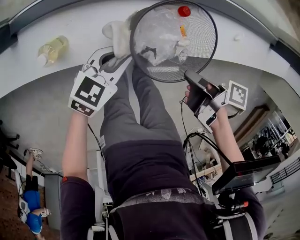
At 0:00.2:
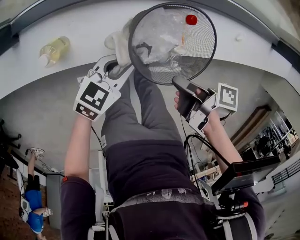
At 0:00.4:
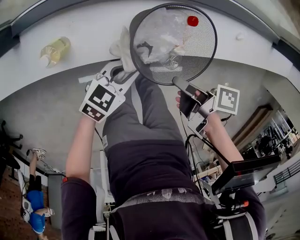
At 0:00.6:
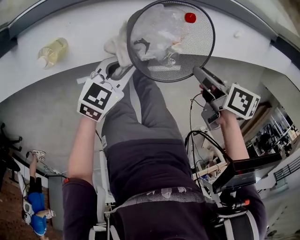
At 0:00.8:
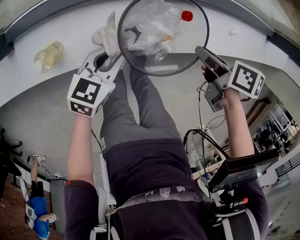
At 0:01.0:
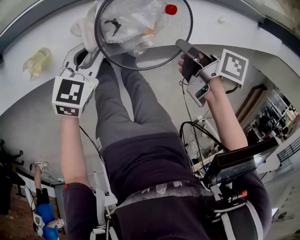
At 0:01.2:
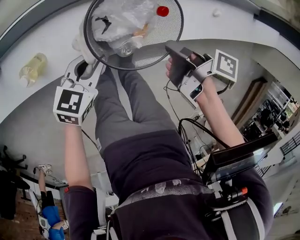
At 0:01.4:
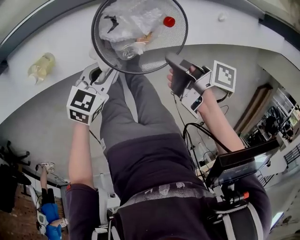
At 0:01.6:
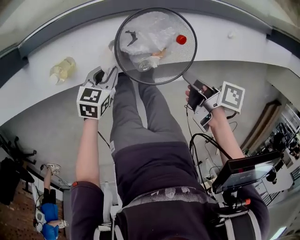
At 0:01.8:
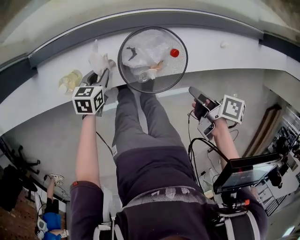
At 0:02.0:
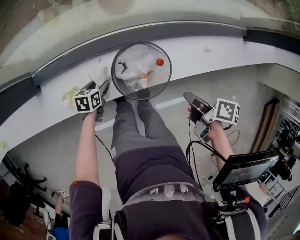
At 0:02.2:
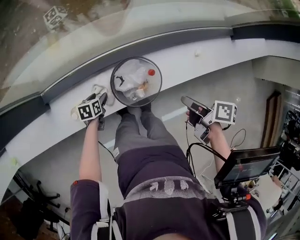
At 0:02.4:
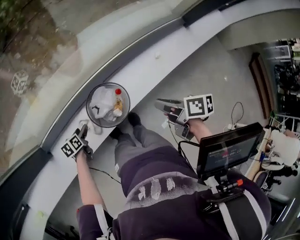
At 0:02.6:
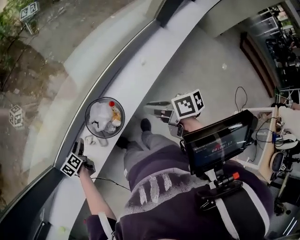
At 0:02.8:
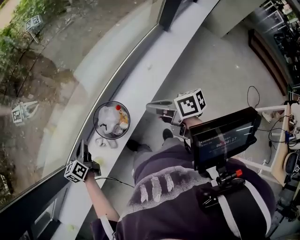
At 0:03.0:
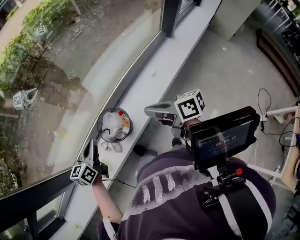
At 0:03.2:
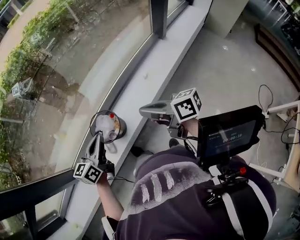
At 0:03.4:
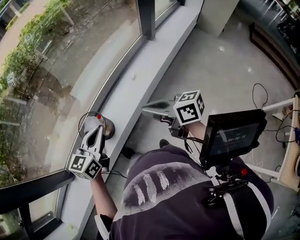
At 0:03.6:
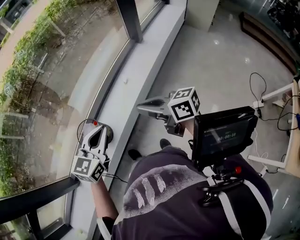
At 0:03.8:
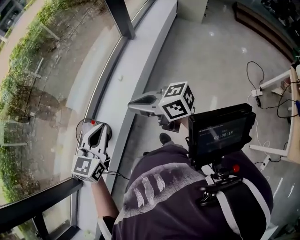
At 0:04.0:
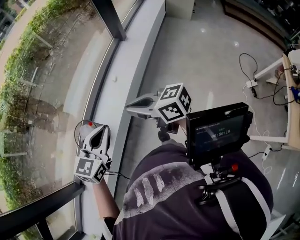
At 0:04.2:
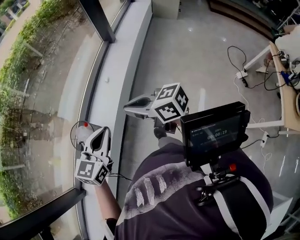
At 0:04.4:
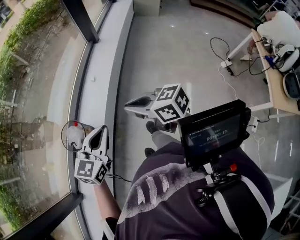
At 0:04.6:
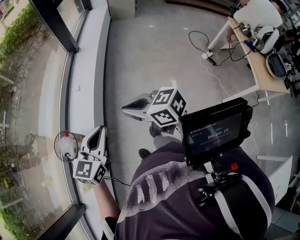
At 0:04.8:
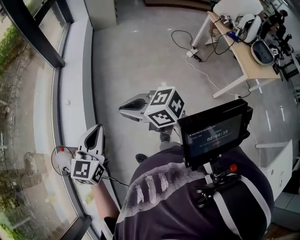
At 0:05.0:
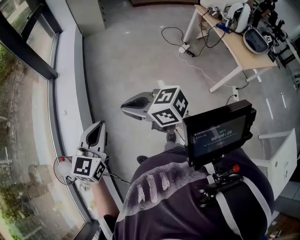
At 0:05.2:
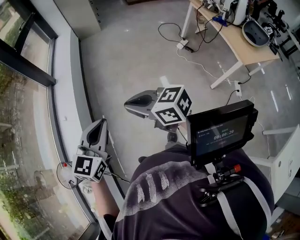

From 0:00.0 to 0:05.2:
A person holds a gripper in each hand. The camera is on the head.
From 0:00.0 to 0:01.8: The left gripper changes place by approximately 10 cm, and turns by roughly 30 degrees.
From 0:01.8 to 0:03.4: The left gripper moves upward, some 40 cm, points its fingers some 30 degrees further upward, and opens, then closes again.
From 0:03.4 to 0:05.2: The left gripper changes place by roughly 40 cm, and changes its angle by about 50 degrees.

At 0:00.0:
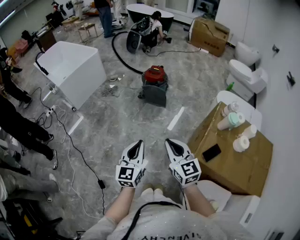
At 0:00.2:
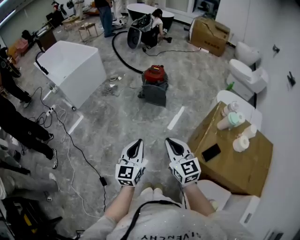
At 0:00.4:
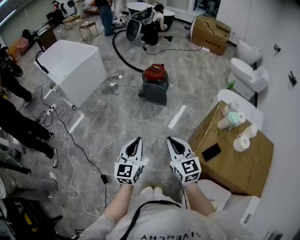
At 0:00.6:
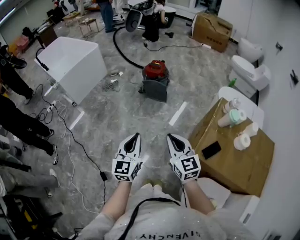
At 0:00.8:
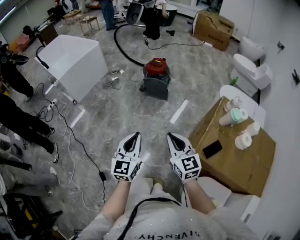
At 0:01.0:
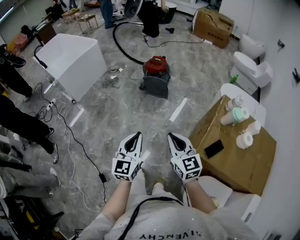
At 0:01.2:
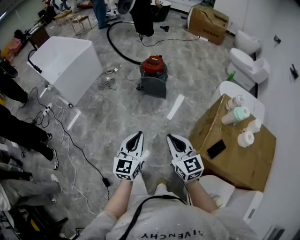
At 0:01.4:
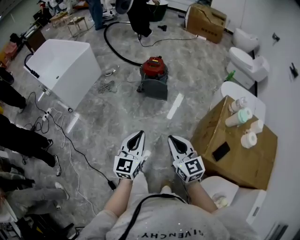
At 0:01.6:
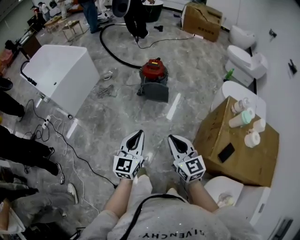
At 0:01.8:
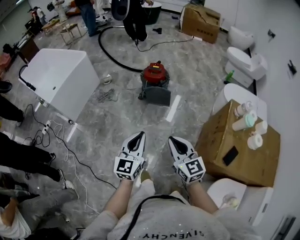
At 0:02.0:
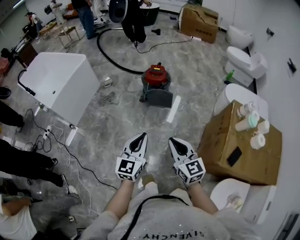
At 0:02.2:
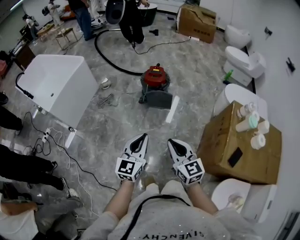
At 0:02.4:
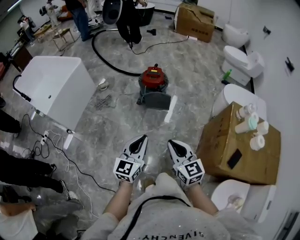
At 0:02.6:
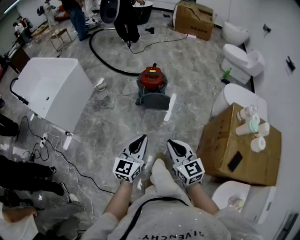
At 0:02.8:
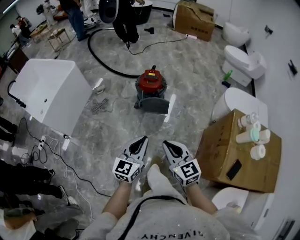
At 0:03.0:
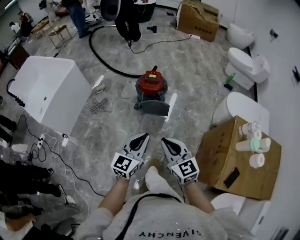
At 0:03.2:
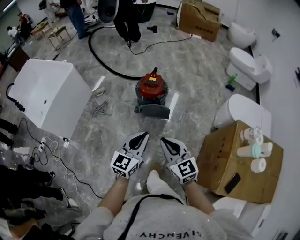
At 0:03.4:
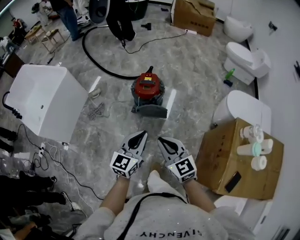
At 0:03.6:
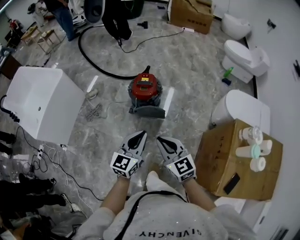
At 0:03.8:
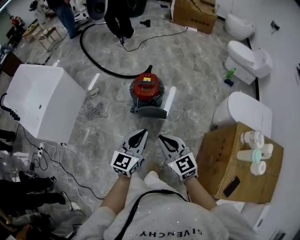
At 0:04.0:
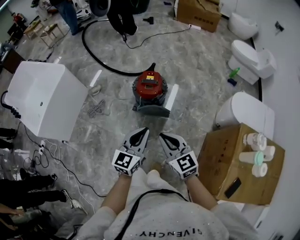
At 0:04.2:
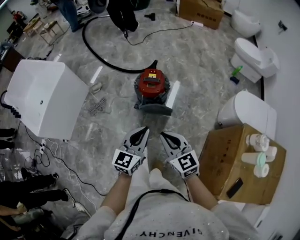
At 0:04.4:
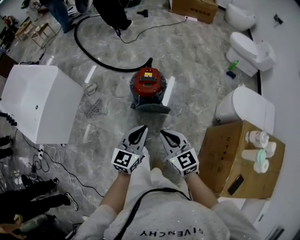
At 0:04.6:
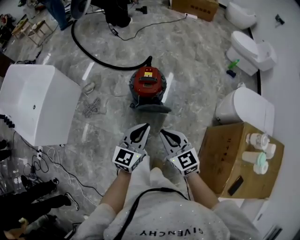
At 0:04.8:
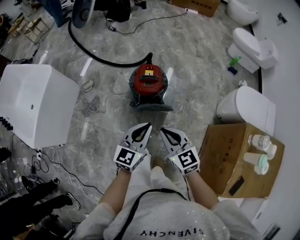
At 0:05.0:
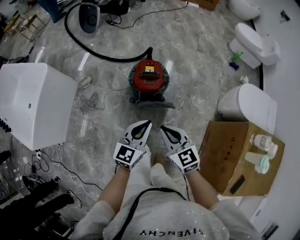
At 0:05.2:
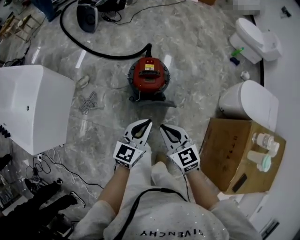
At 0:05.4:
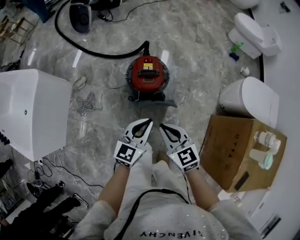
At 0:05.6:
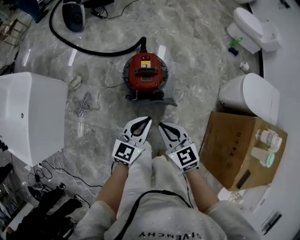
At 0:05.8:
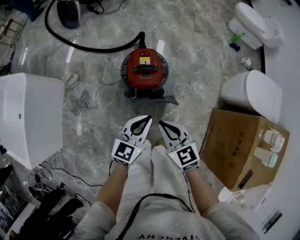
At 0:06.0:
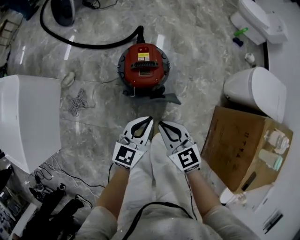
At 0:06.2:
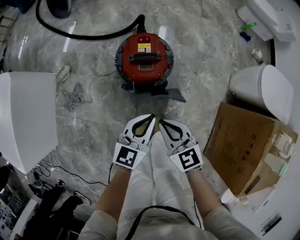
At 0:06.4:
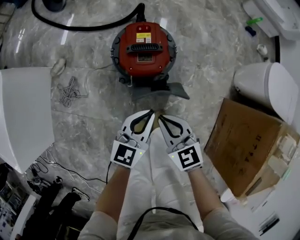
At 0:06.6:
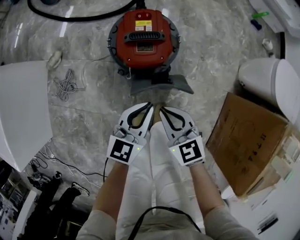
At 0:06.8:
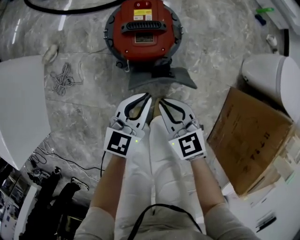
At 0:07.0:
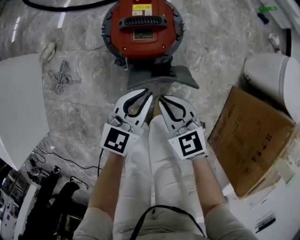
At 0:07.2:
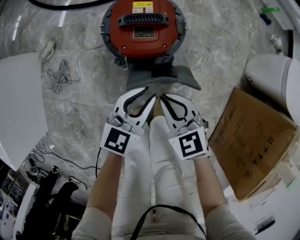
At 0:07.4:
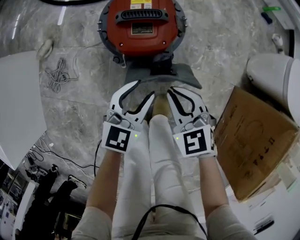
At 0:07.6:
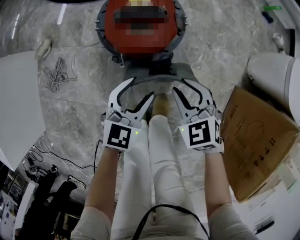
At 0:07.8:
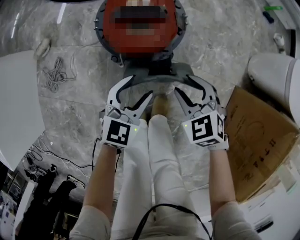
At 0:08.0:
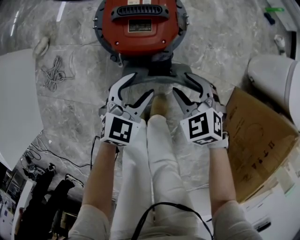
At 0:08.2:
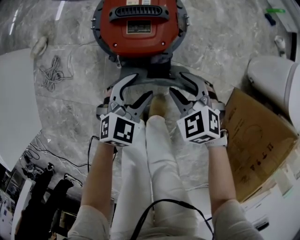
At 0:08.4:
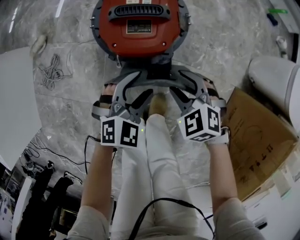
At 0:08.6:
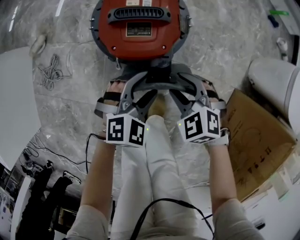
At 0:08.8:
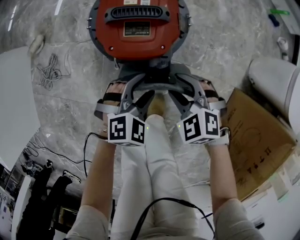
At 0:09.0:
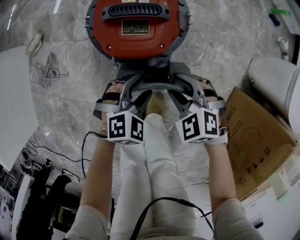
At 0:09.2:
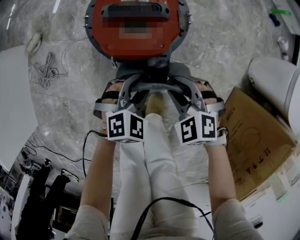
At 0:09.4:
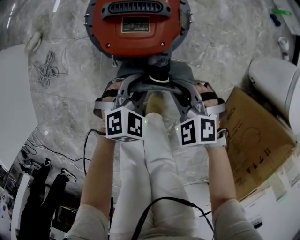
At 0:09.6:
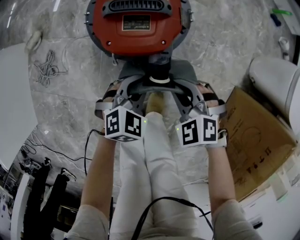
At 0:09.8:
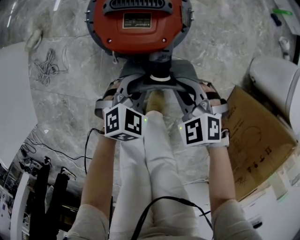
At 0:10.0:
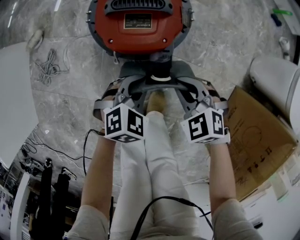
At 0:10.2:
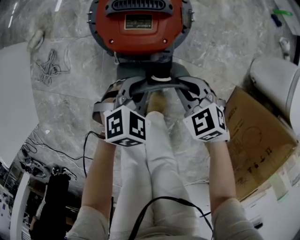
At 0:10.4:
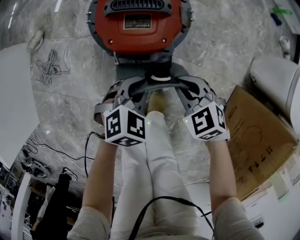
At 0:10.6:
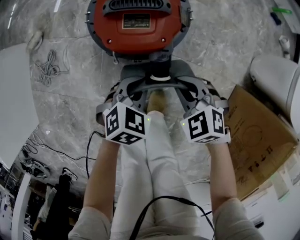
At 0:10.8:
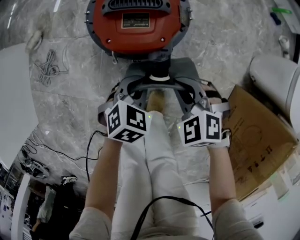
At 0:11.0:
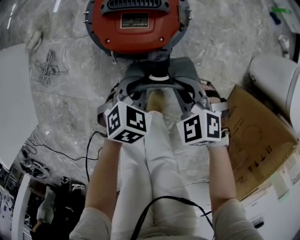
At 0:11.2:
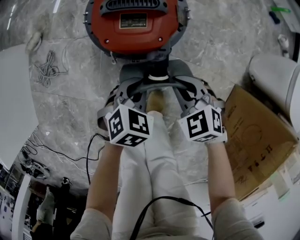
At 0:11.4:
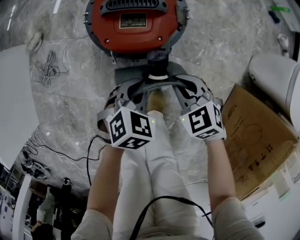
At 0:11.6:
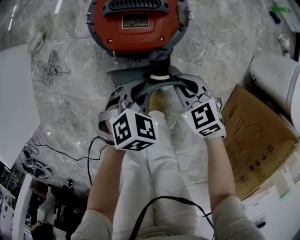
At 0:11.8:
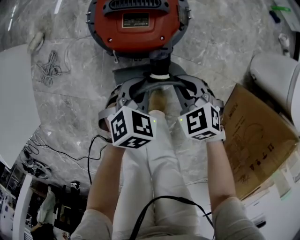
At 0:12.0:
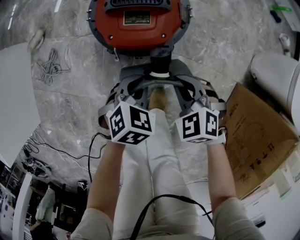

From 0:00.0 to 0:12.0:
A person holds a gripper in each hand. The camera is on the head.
From 0:00.0 to 0:01.6: Both grippers travel together forward and to the left, some 15 cm.
From 0:01.6 to 0:03.0: Both grippers travel together forward, some 20 cm.
From 0:03.0 to 0:04.4: The grippers both shift forward by some 15 cm.
From 0:04.4 to 0:06.0: Both grippers travel together downward and forward, some 20 cm.
From 0:06.0 to 0:07.6: Both grippers travel together downward, about 20 cm. The right gripper swivels approximately 30 degrees, and opens. Meanwhile the left gripper opens.
From 0:07.6 to 0:09.0: Both grippers travel together downward, about 10 cm. The right gripper swivels about 20 degrees, and opens its fingers. The left gripper swivels roughly 40 degrees.
From 0:09.0 to 0:10.4: The left gripper closes up. Meanwhile the right gripper closes.
From 0:10.4 to 0:12.0: There are only small adjustments of the grippers.

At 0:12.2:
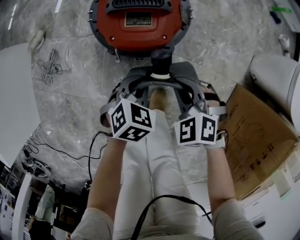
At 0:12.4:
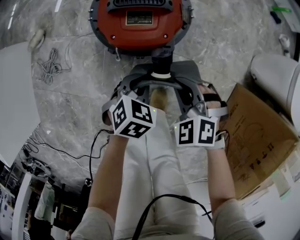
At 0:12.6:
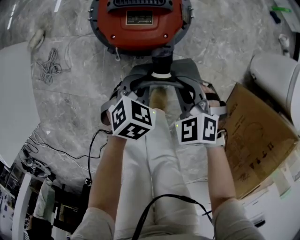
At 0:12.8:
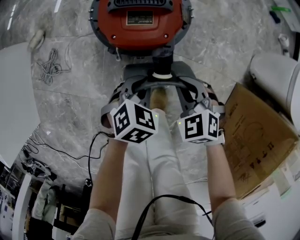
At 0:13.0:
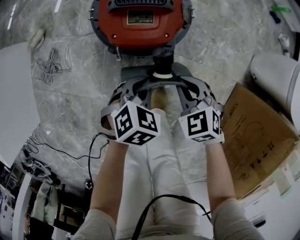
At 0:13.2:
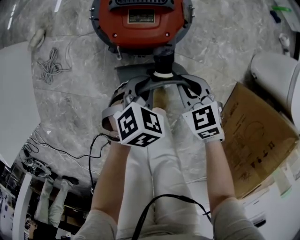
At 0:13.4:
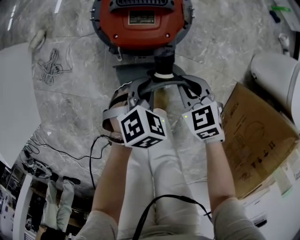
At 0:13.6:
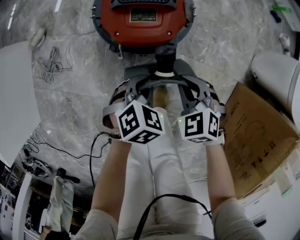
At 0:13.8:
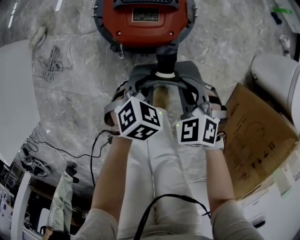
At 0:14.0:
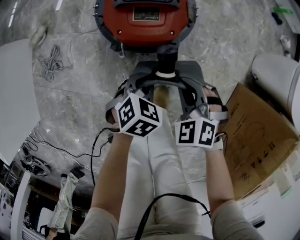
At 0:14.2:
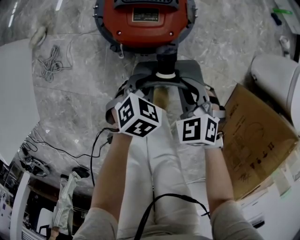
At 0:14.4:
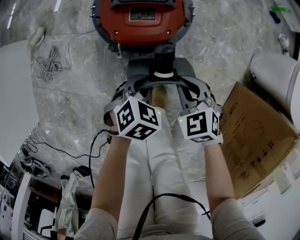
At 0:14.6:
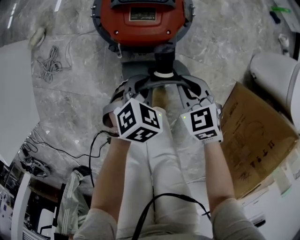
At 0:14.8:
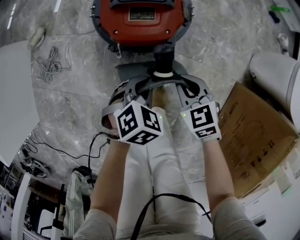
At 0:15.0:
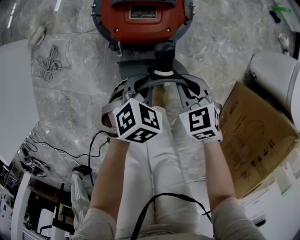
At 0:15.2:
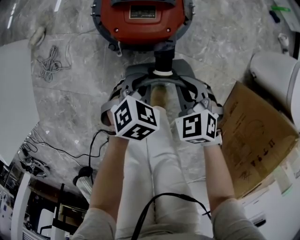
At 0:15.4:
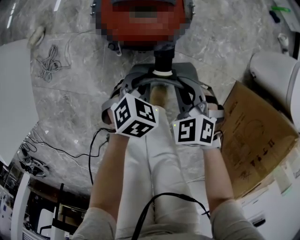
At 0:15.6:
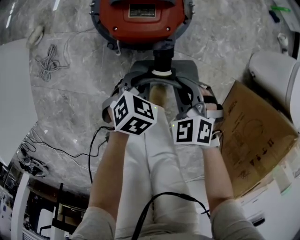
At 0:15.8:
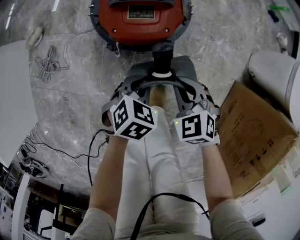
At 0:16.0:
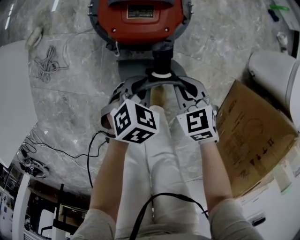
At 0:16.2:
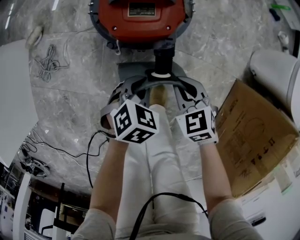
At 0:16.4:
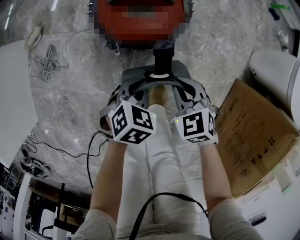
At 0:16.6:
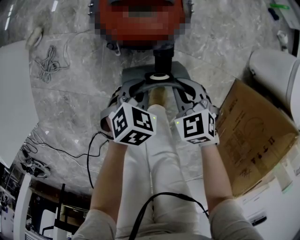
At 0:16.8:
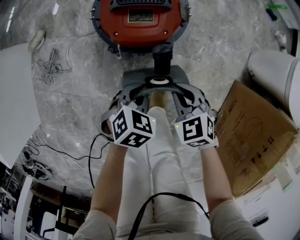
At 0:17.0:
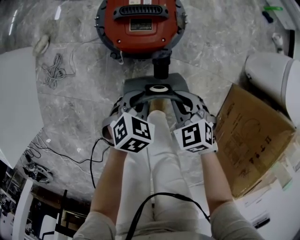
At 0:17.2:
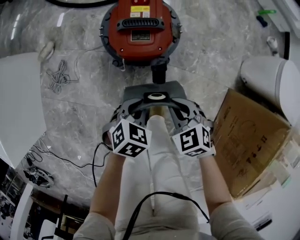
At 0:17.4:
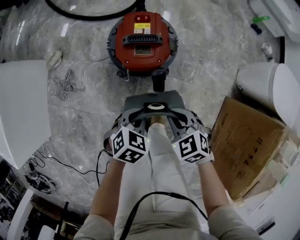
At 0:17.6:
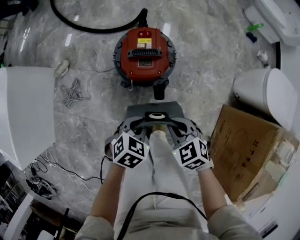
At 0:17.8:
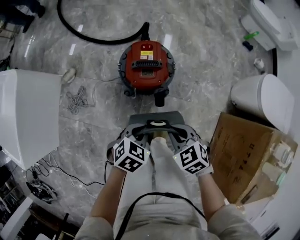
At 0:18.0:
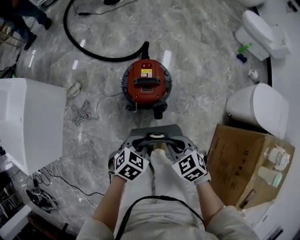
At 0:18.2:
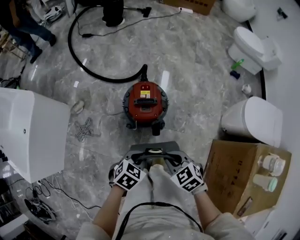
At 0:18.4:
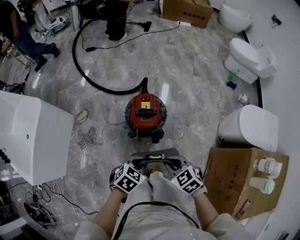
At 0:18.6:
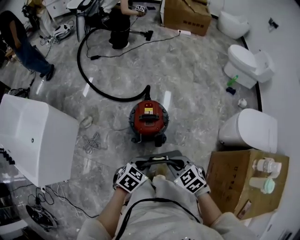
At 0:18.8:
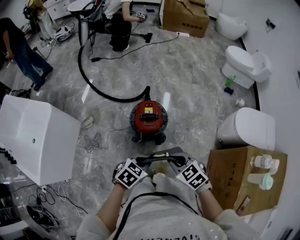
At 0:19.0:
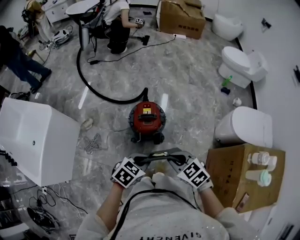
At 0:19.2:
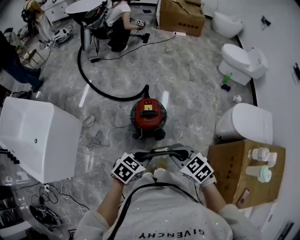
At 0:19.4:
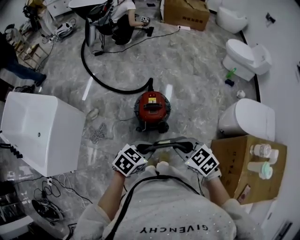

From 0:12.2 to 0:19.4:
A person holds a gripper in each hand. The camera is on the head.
From 0:16.6 to 0:18.0: Both grippers travel together upward, approximately 25 cm.
From 0:18.0 to 0:19.4: Both grippers move upward, some 25 cm.
